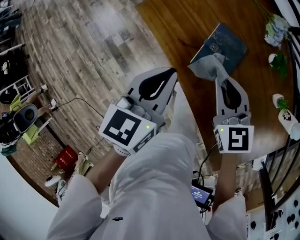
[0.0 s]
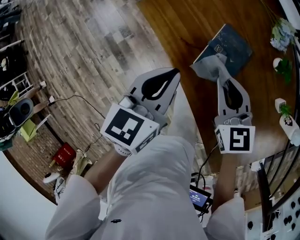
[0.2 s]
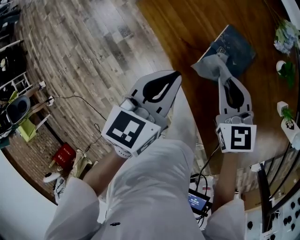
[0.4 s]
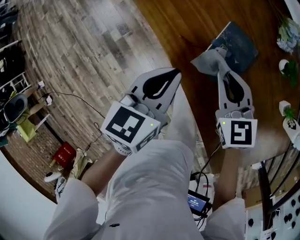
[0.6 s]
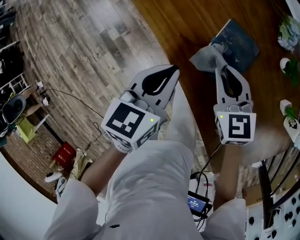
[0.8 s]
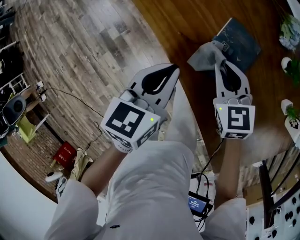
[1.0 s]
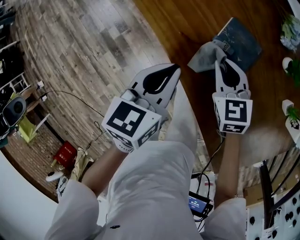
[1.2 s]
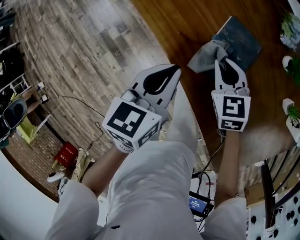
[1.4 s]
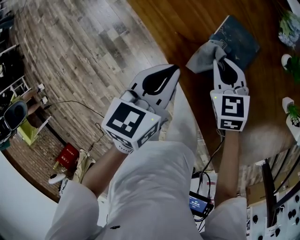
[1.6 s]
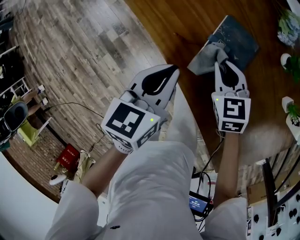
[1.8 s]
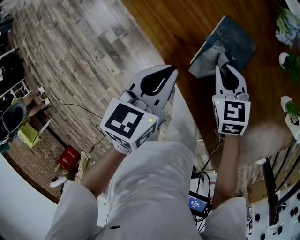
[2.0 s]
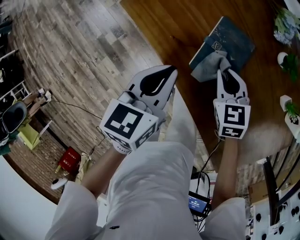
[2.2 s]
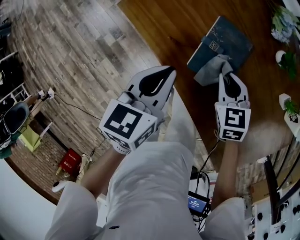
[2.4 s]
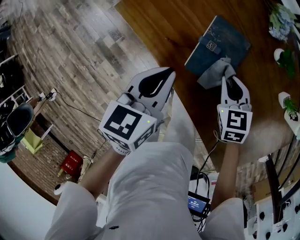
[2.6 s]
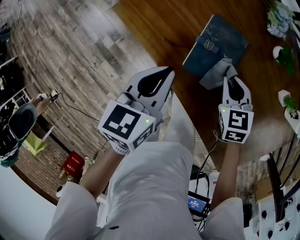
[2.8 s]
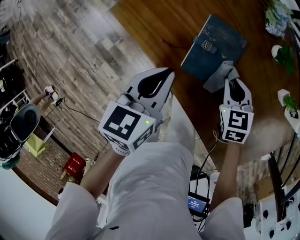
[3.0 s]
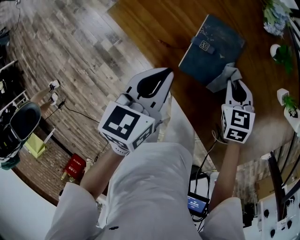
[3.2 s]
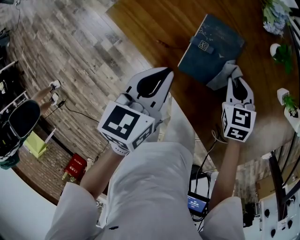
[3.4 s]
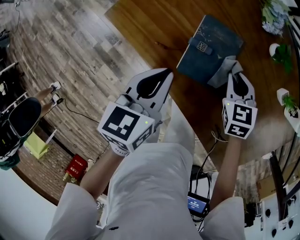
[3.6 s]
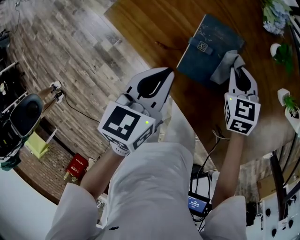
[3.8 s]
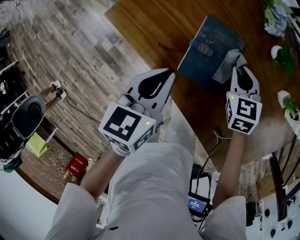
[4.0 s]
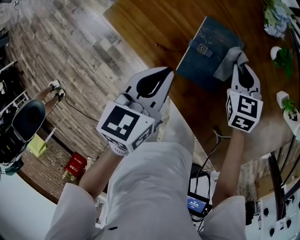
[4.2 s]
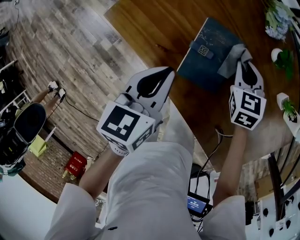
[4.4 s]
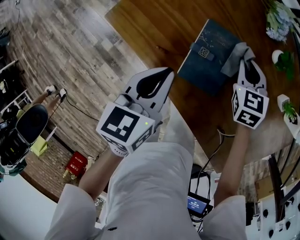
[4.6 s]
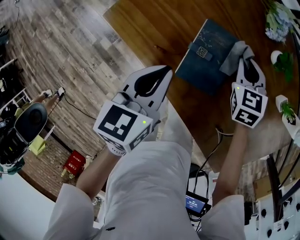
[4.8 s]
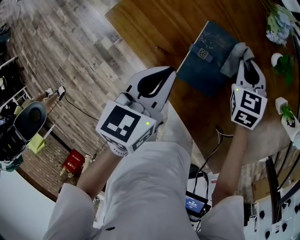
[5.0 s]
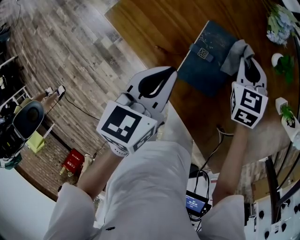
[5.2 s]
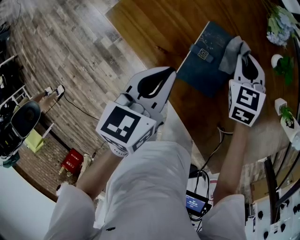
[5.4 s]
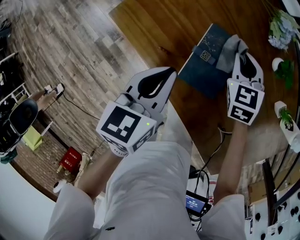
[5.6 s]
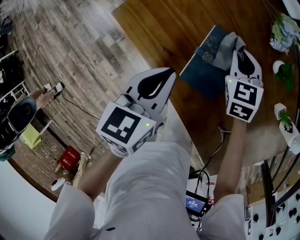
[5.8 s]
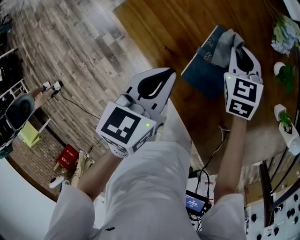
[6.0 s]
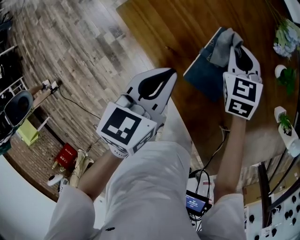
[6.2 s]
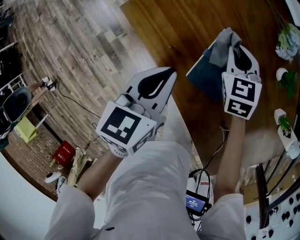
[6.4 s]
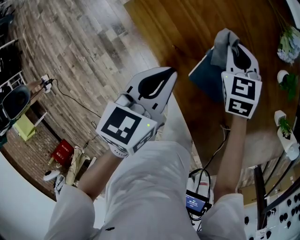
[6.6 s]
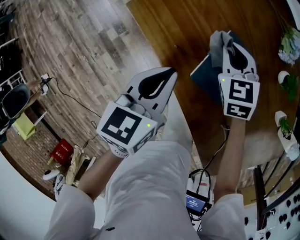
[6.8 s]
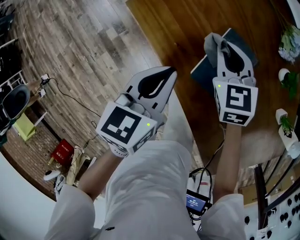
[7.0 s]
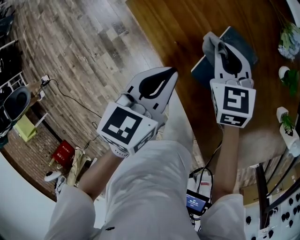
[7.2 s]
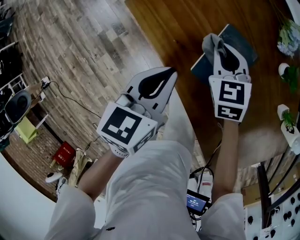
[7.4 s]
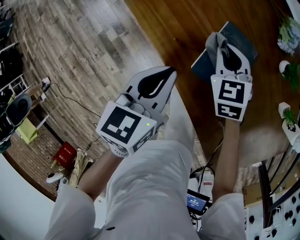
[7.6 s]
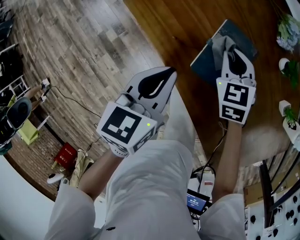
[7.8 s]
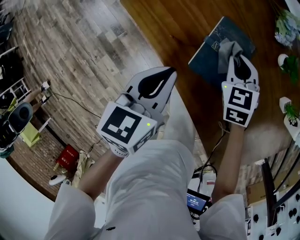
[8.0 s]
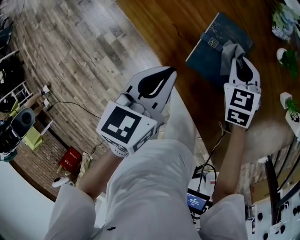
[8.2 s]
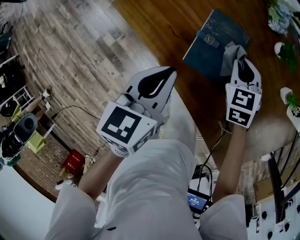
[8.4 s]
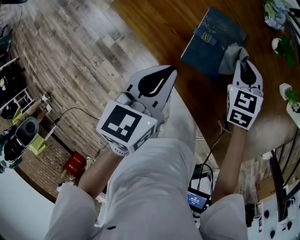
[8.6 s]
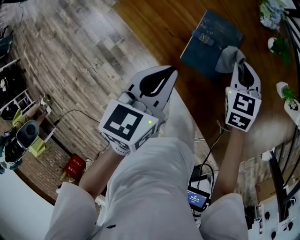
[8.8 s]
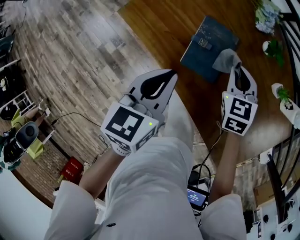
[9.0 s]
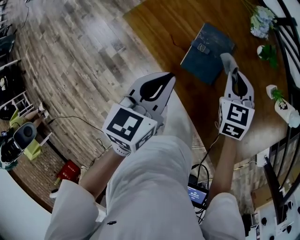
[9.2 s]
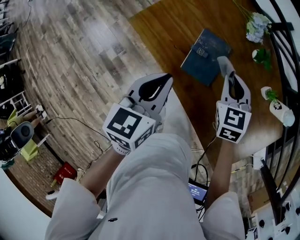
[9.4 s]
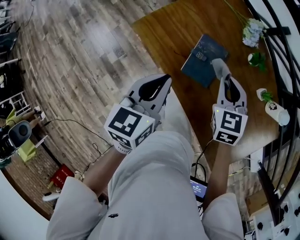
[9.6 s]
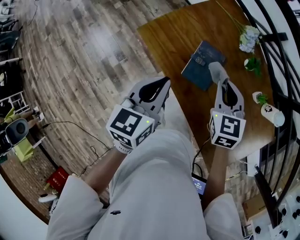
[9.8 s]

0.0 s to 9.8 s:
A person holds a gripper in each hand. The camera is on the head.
0.0 to 1.4 s: The two grippers go roughly 10 cm downward.
1.4 to 2.8 s: The right gripper is displaced to the right by some 10 cm.
2.8 to 4.2 s: The right gripper goes roughly 5 cm forward.
4.2 to 5.6 s: The right gripper shifts some 5 cm forward.
5.6 to 7.0 s: The right gripper goes roughly 10 cm to the left.
7.0 to 8.4 s: The right gripper is displaced to the right by about 15 cm.
8.4 to 9.8 s: The two grippers go about 15 cm upward.

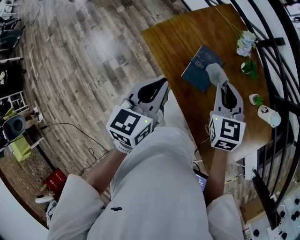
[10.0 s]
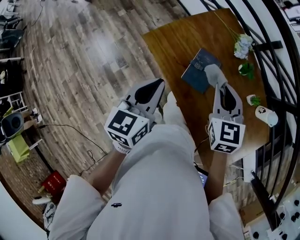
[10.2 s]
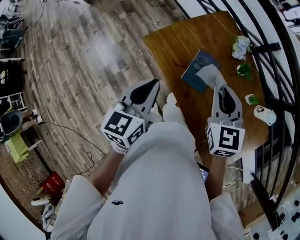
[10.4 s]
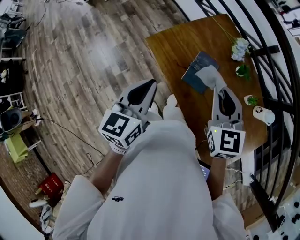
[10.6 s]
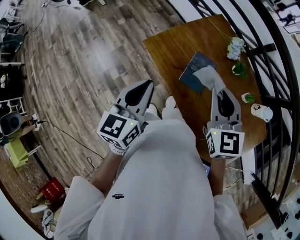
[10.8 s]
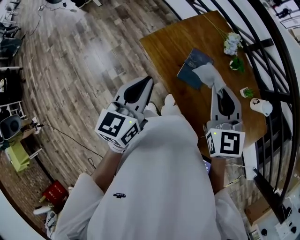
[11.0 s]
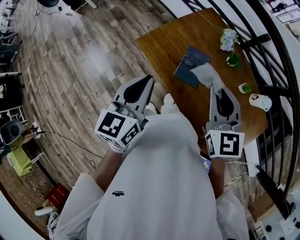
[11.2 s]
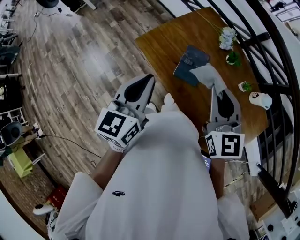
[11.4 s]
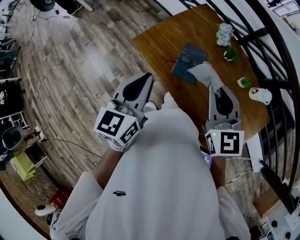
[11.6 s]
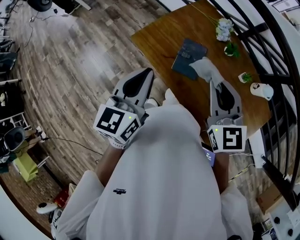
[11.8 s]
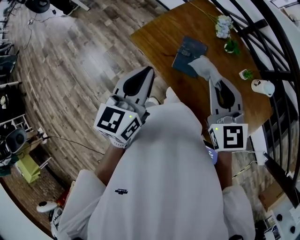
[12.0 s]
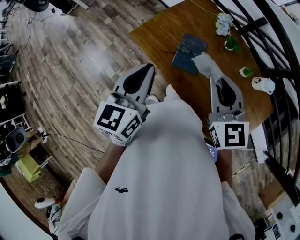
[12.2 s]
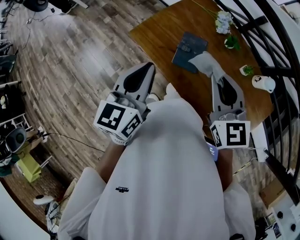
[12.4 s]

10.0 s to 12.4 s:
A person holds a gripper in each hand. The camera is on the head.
10.0 to 11.2 s: The left gripper shifts some 10 cm upward, while the right gripper heads upward and backward, covering approximately 15 cm.
11.2 to 12.4 s: The grippers make only small movements.

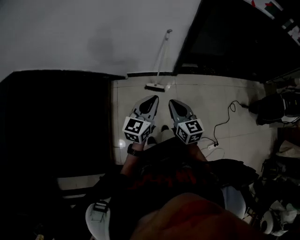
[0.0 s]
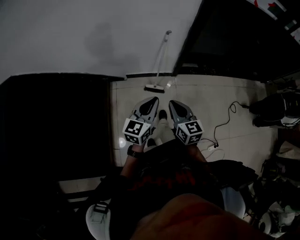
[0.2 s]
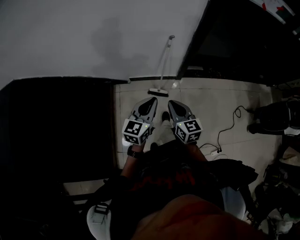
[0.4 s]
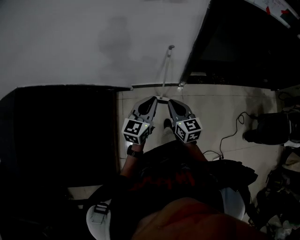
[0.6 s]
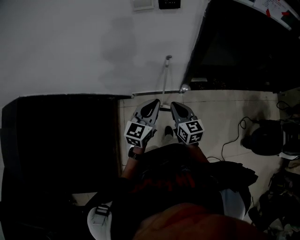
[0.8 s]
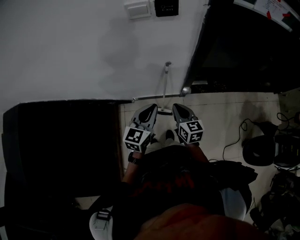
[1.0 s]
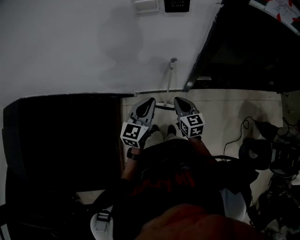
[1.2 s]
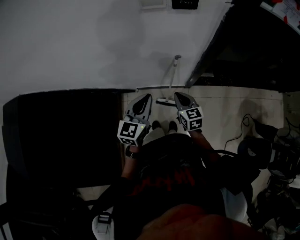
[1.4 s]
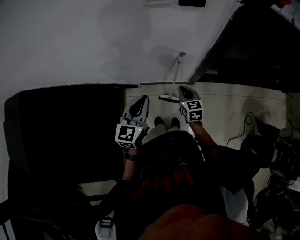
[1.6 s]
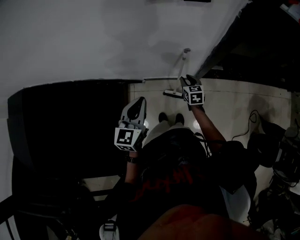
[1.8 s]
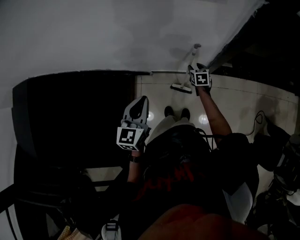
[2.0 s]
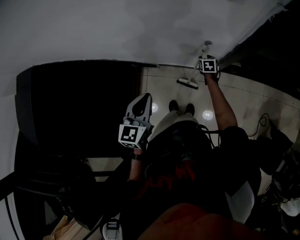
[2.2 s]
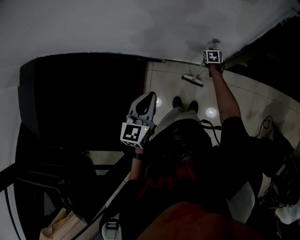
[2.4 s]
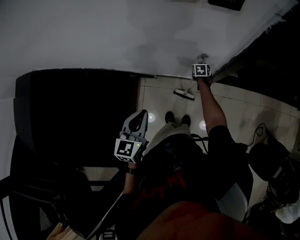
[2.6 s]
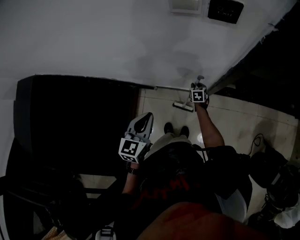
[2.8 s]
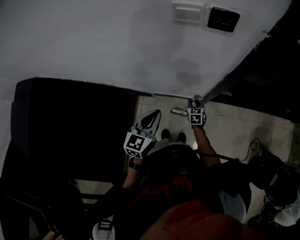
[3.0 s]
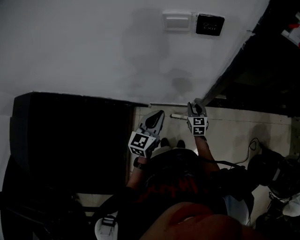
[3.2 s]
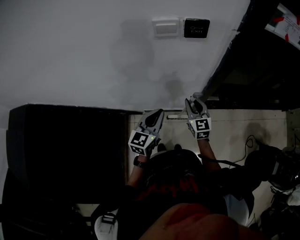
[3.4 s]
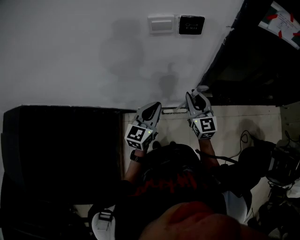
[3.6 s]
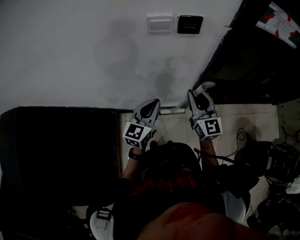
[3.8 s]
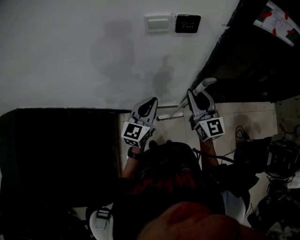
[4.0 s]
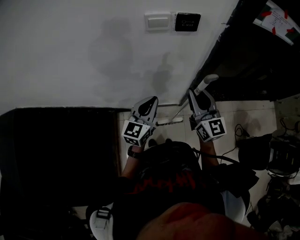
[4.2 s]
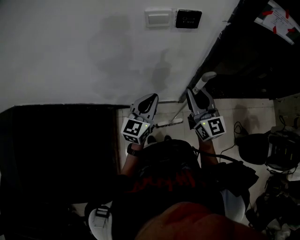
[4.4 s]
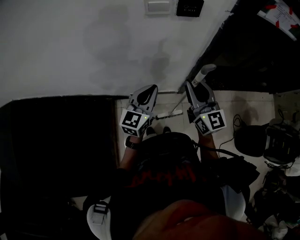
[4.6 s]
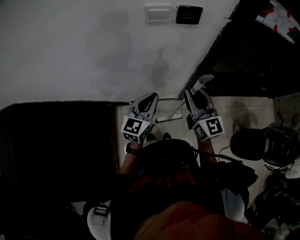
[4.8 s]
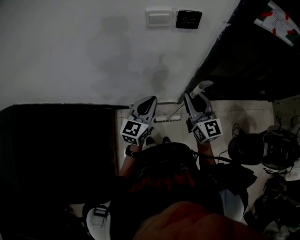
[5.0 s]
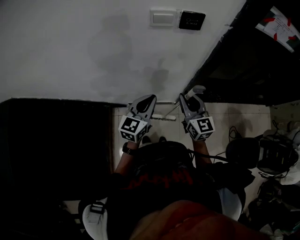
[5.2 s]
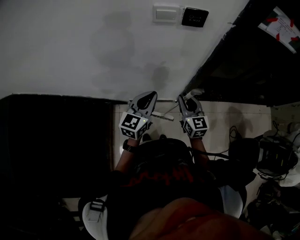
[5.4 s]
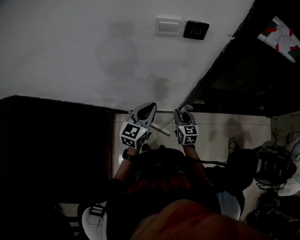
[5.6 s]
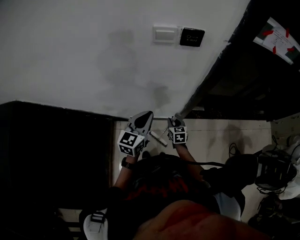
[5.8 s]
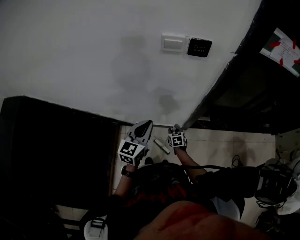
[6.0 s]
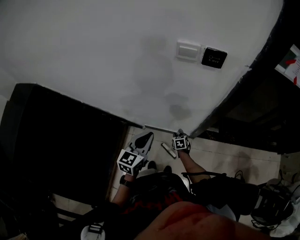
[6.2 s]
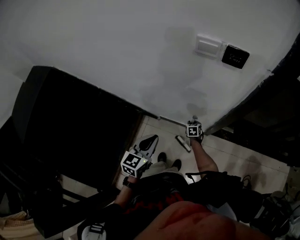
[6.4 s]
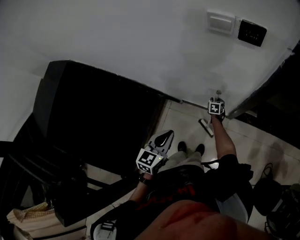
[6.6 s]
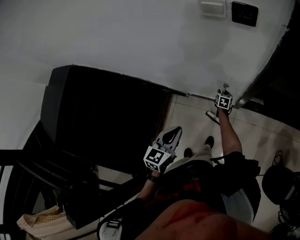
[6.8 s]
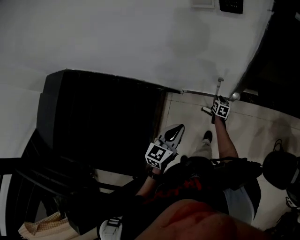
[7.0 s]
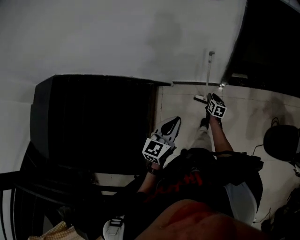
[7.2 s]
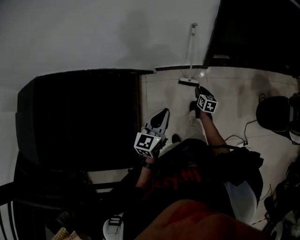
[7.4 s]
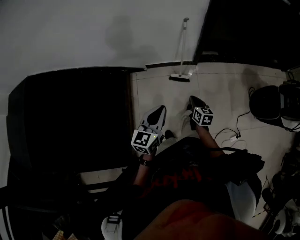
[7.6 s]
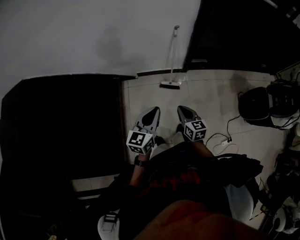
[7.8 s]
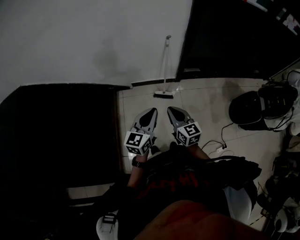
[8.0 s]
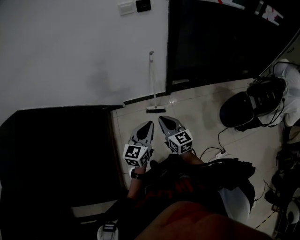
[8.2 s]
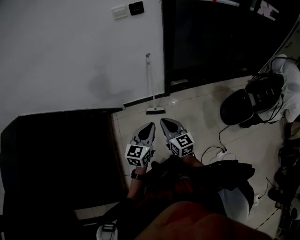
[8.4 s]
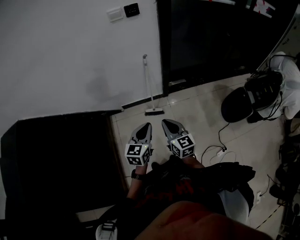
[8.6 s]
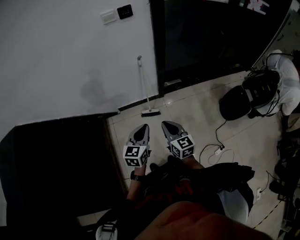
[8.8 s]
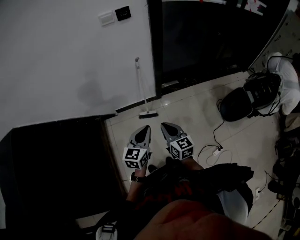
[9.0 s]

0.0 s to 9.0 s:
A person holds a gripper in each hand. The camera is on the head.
0.0 to 1.6 s: Both grippers travel together forward, approximately 35 cm.
1.6 to 3.0 s: The right gripper moves downward and forward, approximately 15 cm, and opens up.
3.0 to 4.4 s: The right gripper travels upward by some 40 cm, and tips its fingers upward by some 50 degrees. Meanwhile the left gripper goes approximately 10 cm upward and forward.
4.4 to 6.0 s: The left gripper ends up some 5 cm from where it was, while the right gripper heads downward, covering some 40 cm, and tilts its fingers some 50 degrees downward.
6.0 to 7.6 s: The two grippers go some 35 cm backward. The right gripper turns by about 30 degrees.
7.6 to 9.0 s: The left gripper shifts roughly 10 cm to the right and forward; the right gripper moves upward, about 15 cm, and changes its angle by about 20 degrees.

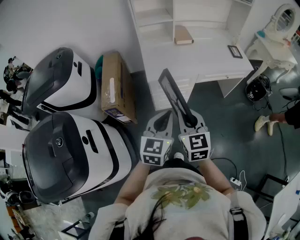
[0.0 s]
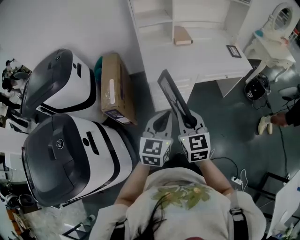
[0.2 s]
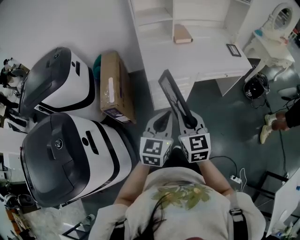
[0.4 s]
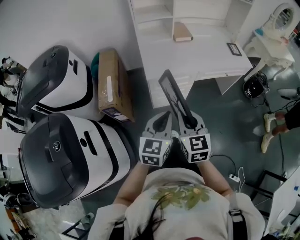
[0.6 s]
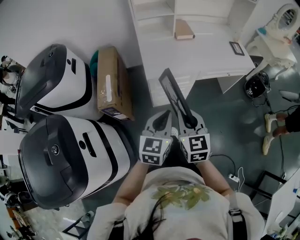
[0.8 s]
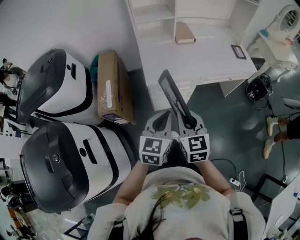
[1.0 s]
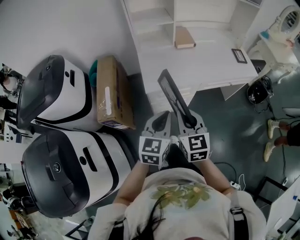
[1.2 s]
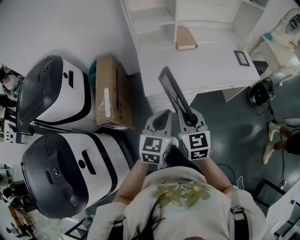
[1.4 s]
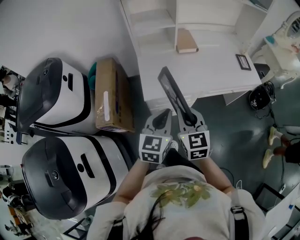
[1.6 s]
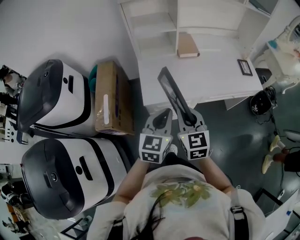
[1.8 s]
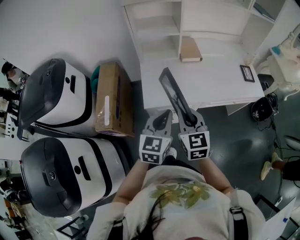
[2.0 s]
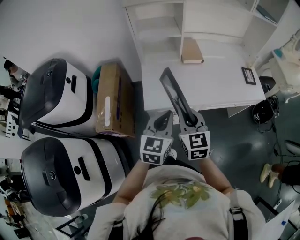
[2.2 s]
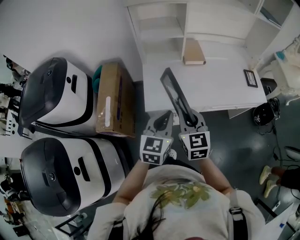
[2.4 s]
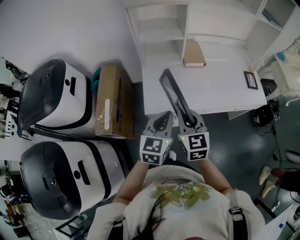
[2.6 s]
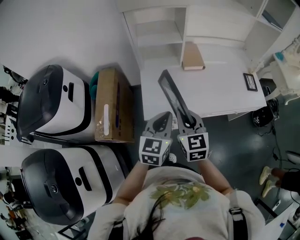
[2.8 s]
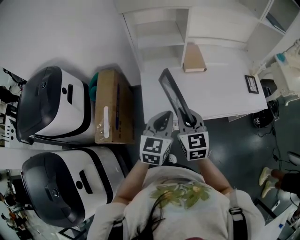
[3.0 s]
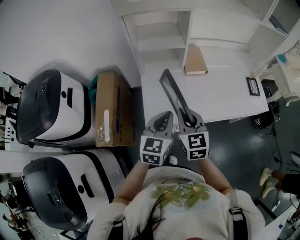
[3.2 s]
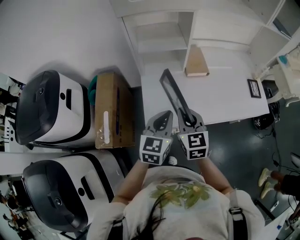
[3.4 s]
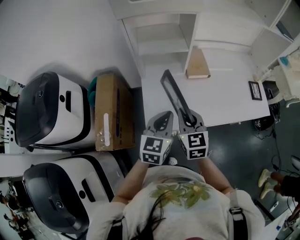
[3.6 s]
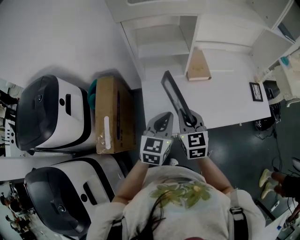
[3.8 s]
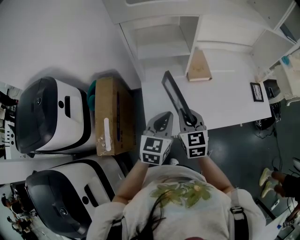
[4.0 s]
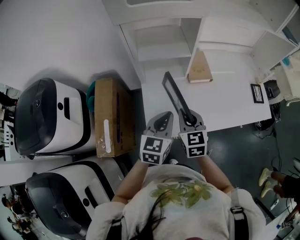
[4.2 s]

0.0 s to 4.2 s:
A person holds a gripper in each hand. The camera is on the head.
0.0 to 1.4 s: Both grippers move forward, roughly 15 cm.
1.4 to 2.8 s: Both grippers travel together forward, roughly 15 cm.
2.8 to 4.2 s: Both grippers travel together forward, roughly 15 cm.
